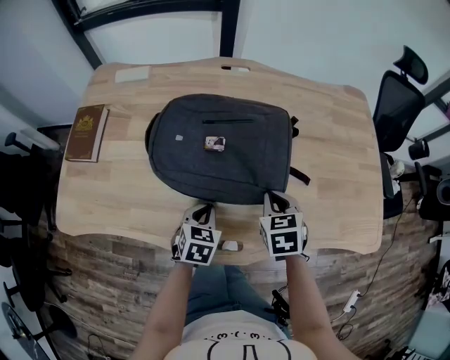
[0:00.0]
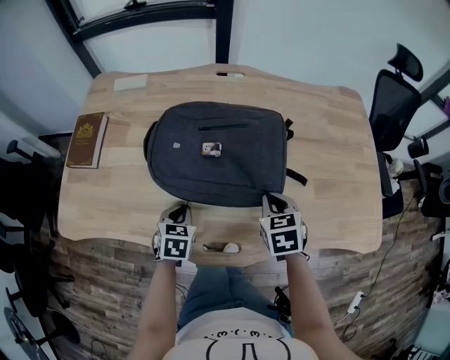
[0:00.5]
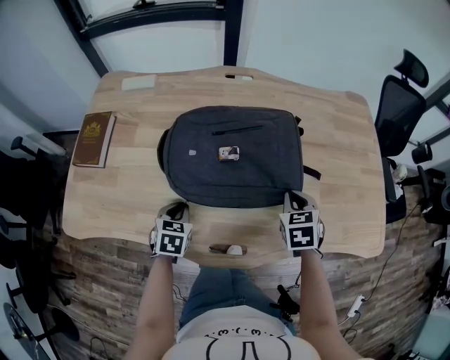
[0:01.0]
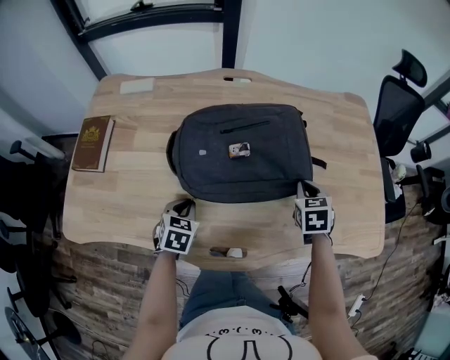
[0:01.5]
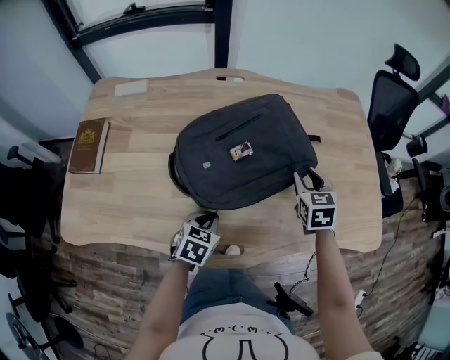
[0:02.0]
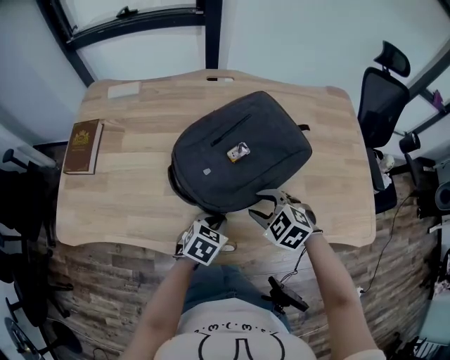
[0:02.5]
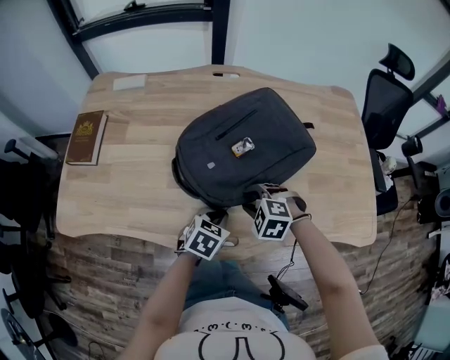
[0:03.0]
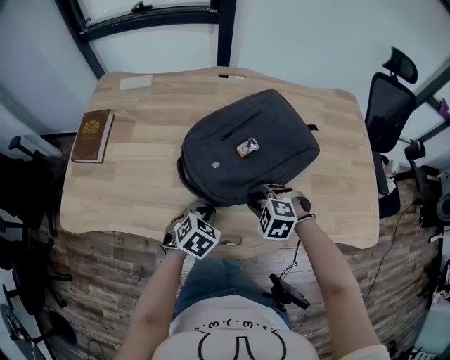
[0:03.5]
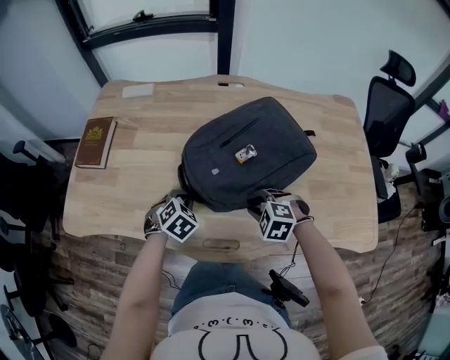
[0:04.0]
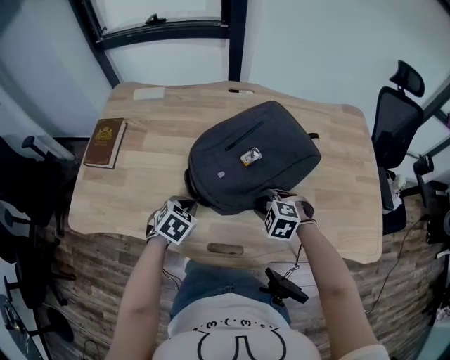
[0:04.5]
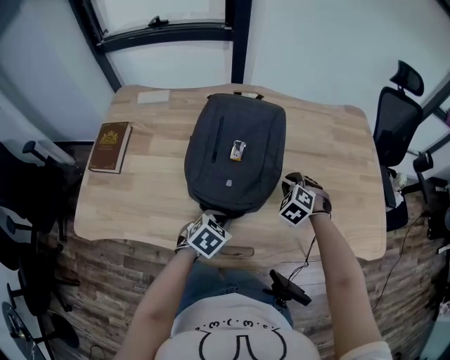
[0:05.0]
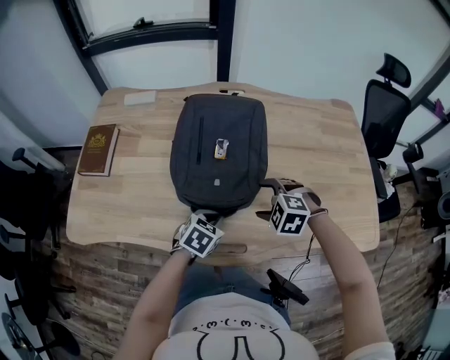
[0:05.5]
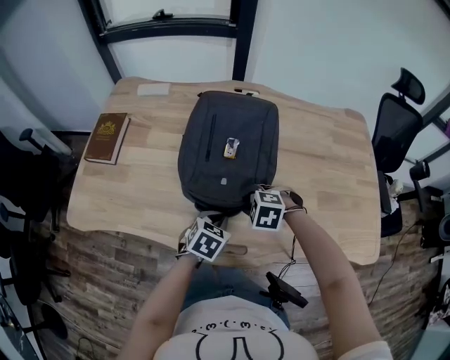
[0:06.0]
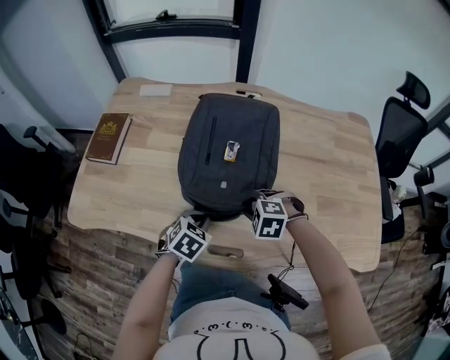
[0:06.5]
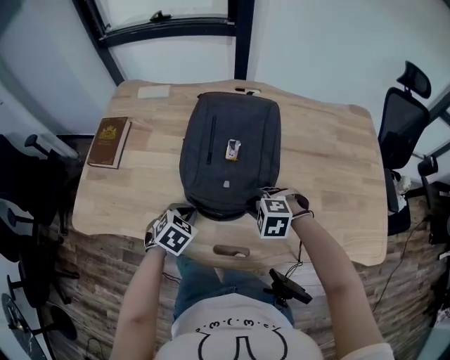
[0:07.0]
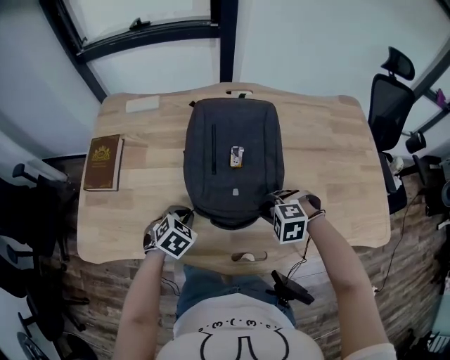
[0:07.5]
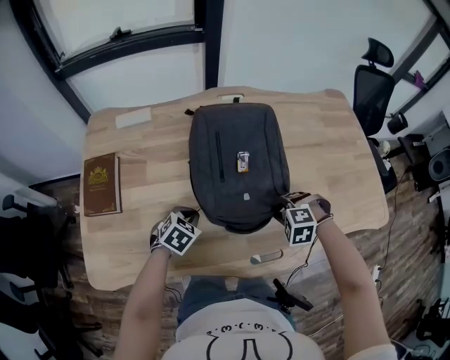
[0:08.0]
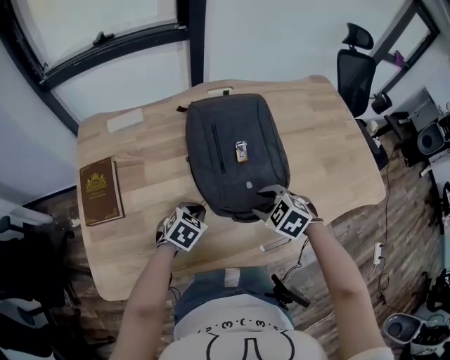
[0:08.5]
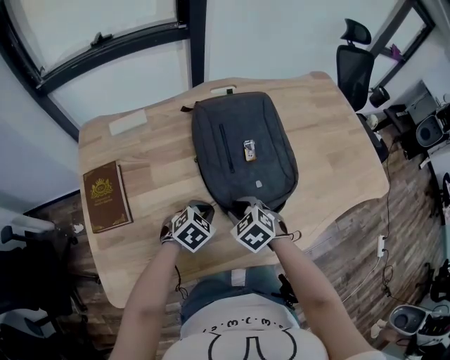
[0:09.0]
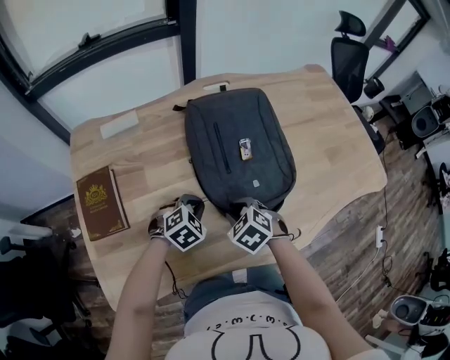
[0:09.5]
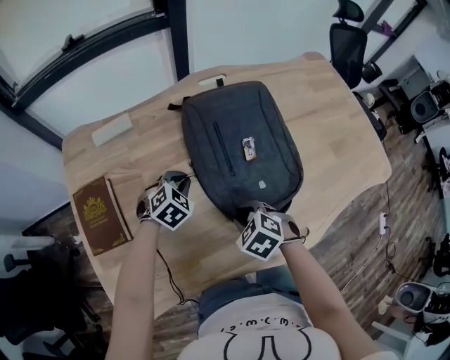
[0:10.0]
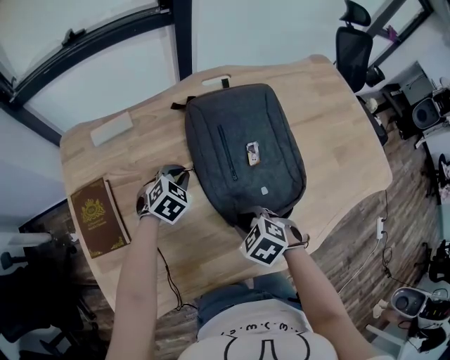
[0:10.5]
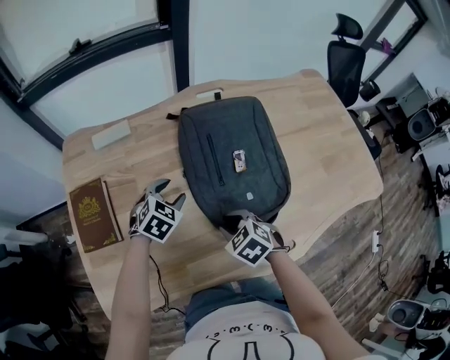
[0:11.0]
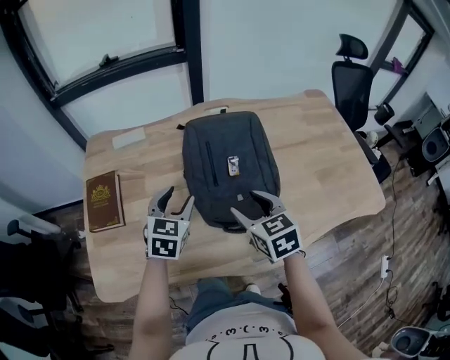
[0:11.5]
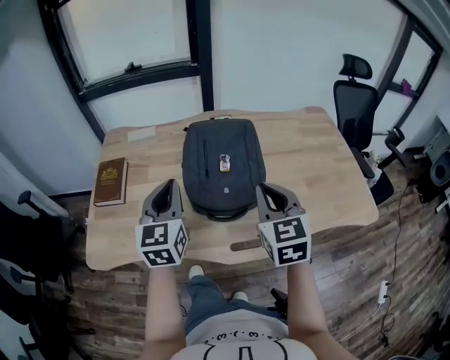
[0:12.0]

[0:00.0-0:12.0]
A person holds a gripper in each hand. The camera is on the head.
0:00.0 to 0:02.0: The left gripper travels to the left and back again, approximately 10 cm each way. Meanwhile the right gripper moves to the right and forward, some 15 cm, and opens its fingers.
0:02.0 to 0:04.0: The right gripper ends up approximately 20 cm from where it was, and rolls counterclockwise, seen from behind, by approximately 60 degrees, while the left gripper moves about 10 cm, and rotates roughly 30 degrees.
0:04.0 to 0:06.0: The left gripper shifts by roughly 10 cm, and changes its angle by approximately 30 degrees. Meanwhile the right gripper opens, then closes again.
0:06.0 to 0:08.0: The left gripper shifts by about 20 cm, and swivels approximately 20 degrees.
0:08.0 to 0:10.0: The left gripper changes place by some 15 cm, and turns by about 30 degrees. The right gripper ends up roughly 20 cm from where it was, and twists some 50 degrees clockwise, seen from behind.
0:10.0 to 0:12.0: The right gripper is displaced upward and to the right by some 35 cm, angles its fingers upward, by about 50 degrees, and opens and closes again. The left gripper shifts approximately 35 cm upward and backward, tips its fingers upward by some 50 degrees, and opens, then closes once more.

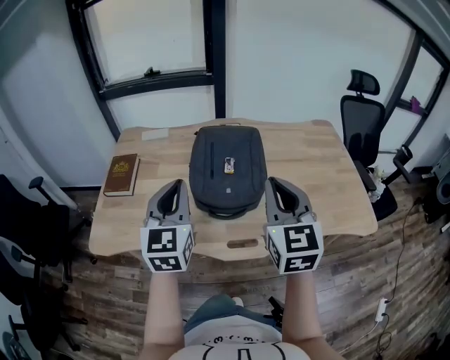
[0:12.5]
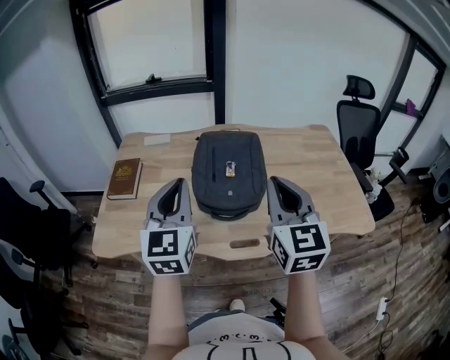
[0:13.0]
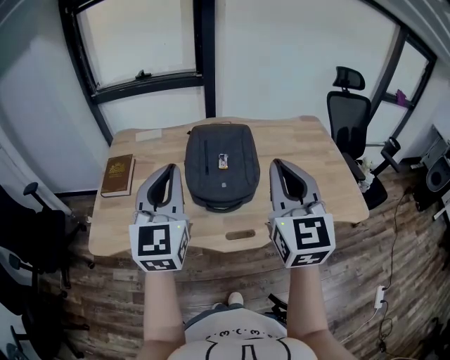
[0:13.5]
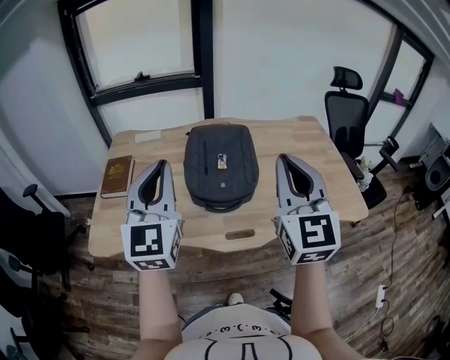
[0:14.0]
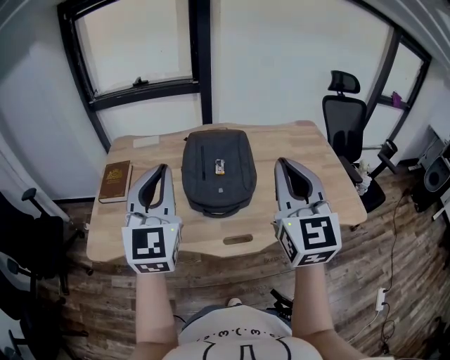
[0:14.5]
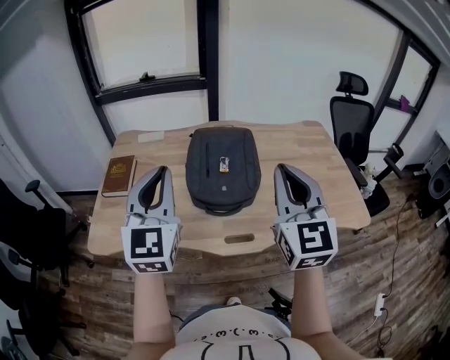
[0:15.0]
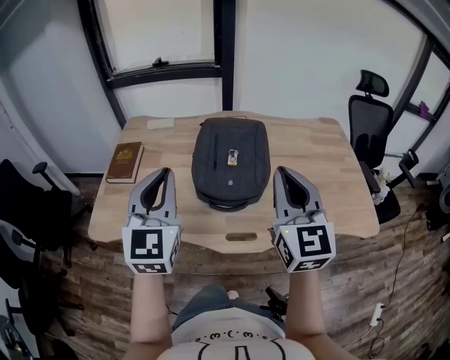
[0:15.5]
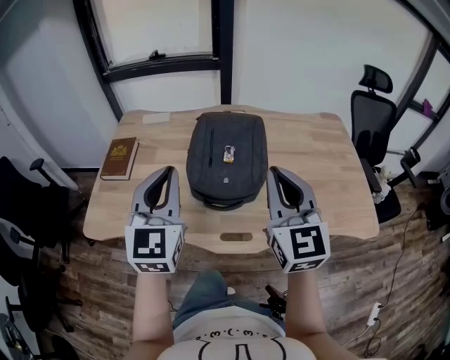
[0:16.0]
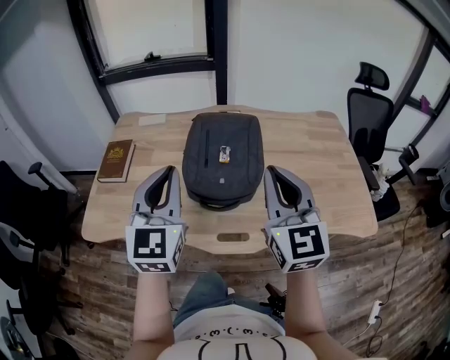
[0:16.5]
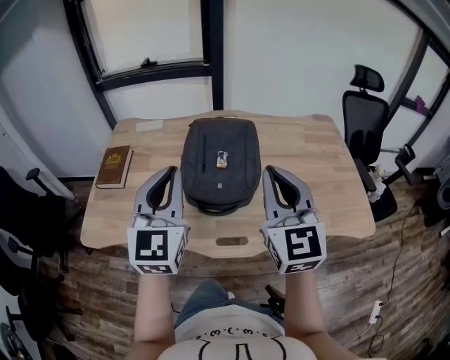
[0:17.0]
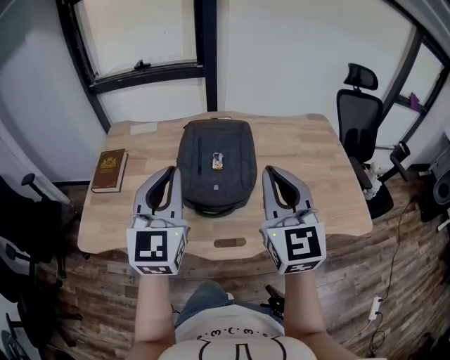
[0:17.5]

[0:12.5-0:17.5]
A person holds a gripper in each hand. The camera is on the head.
0:12.5 to 0:15.0: Both grippers move upward, roughly 5 cm.
0:15.0 to 0:17.5: The left gripper is displaced to the right by about 5 cm; the right gripper shifts by roughly 5 cm.

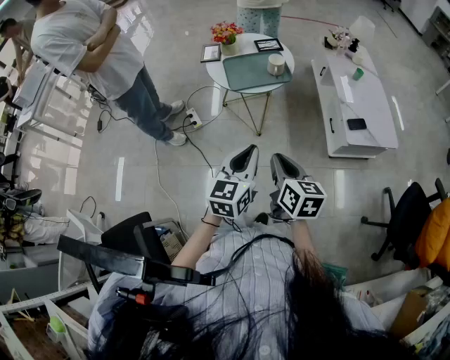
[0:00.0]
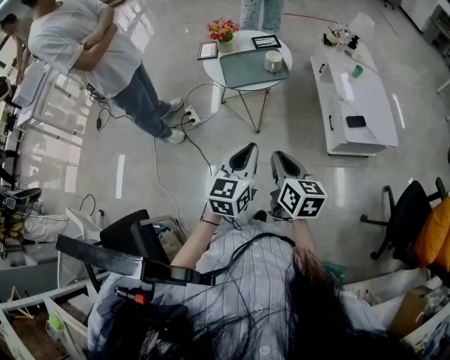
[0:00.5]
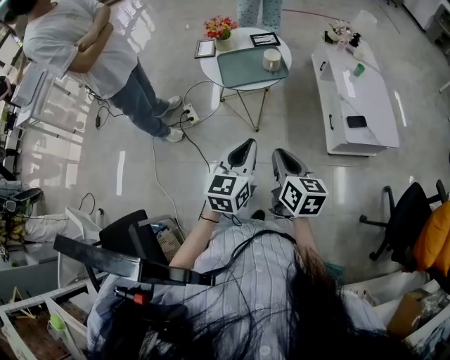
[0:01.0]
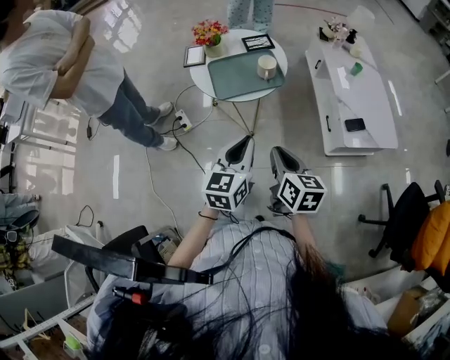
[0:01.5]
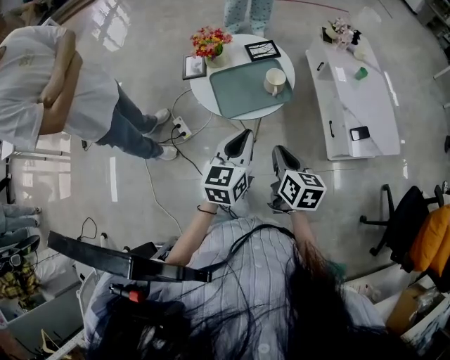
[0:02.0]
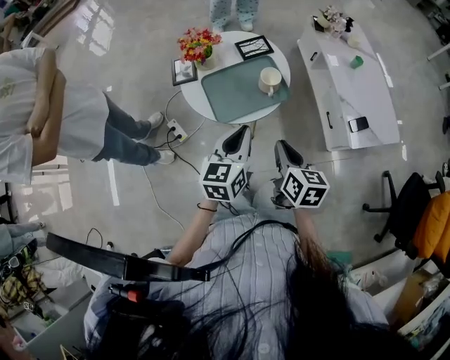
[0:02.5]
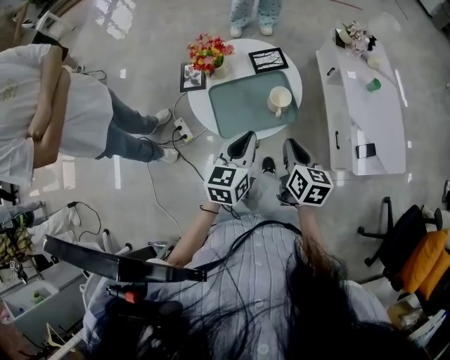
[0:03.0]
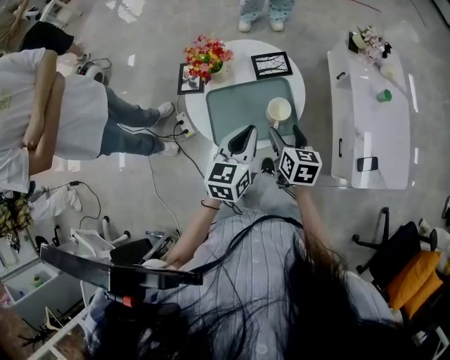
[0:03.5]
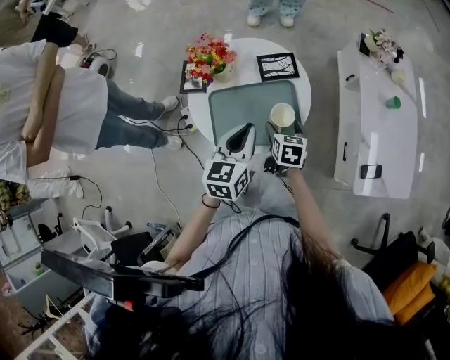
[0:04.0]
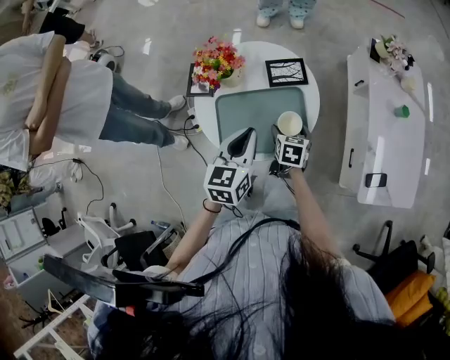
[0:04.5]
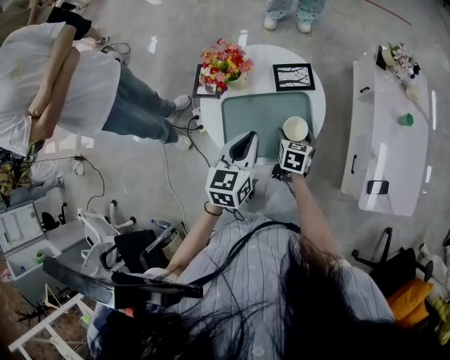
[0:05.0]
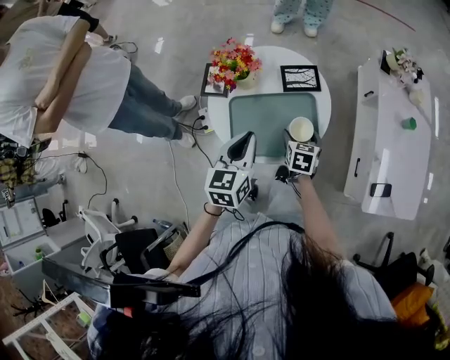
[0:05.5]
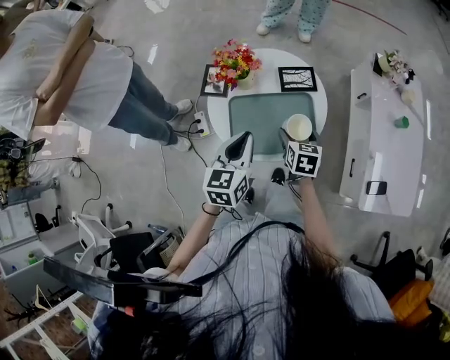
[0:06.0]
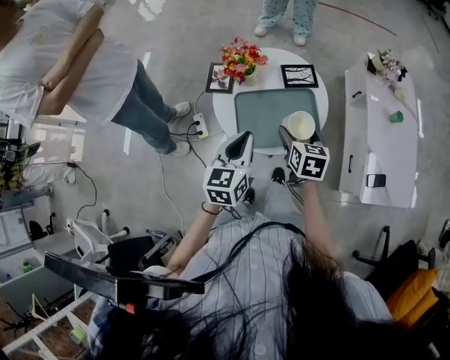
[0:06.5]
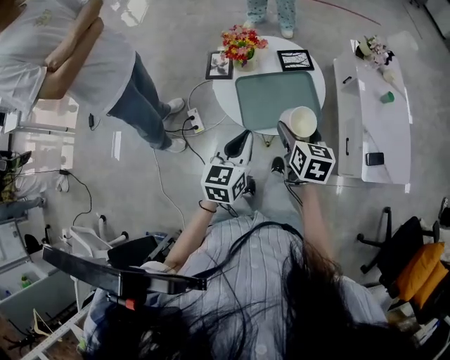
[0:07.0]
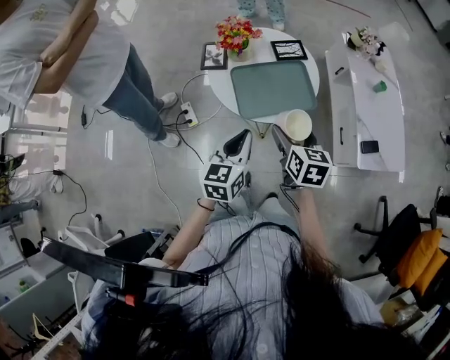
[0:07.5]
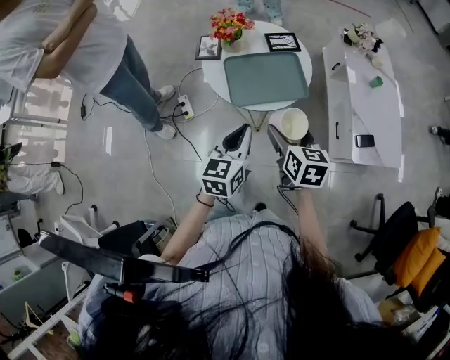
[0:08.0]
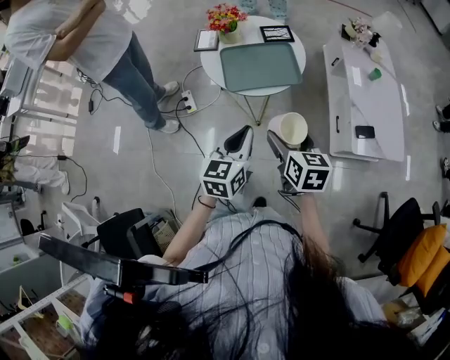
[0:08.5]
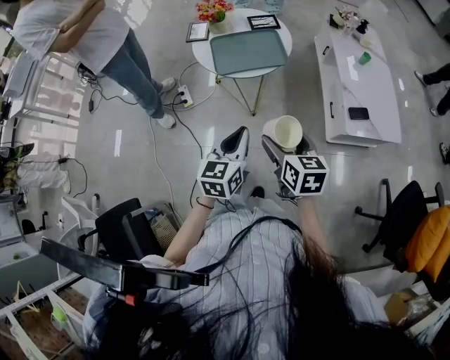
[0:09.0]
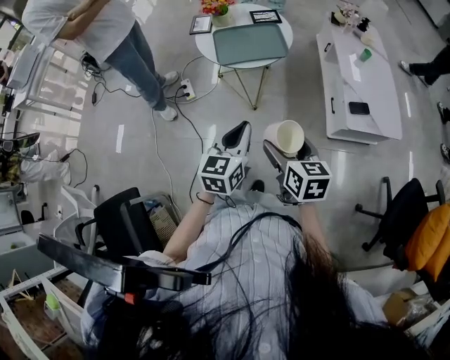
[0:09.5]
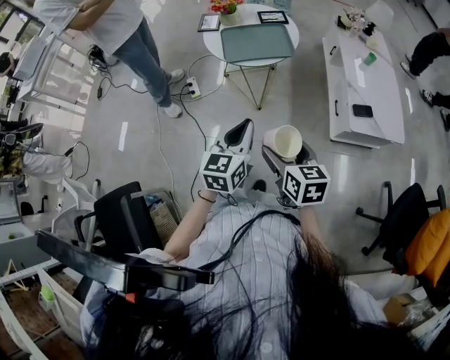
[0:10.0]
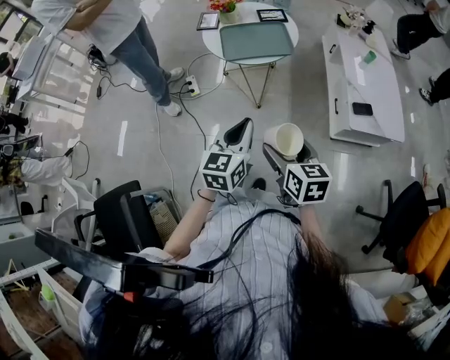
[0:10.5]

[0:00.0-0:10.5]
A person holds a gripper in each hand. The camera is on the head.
0:00.0 to 0:02.0: Both grippers travel together forward, about 25 cm.
0:02.0 to 0:04.0: The left gripper travels forward by about 20 cm. Meanwhile the right gripper moves forward and downward, approximately 35 cm, swivels some 20 degrees, and opens up.
0:04.0 to 0:06.5: The left gripper goes approximately 10 cm to the left and backward. The right gripper shifts some 10 cm upward.
0:06.5 to 0:08.5: Both grippers move backward, about 25 cm.
0:08.5 to 0:10.5: Both grippers move backward, roughly 15 cm.
